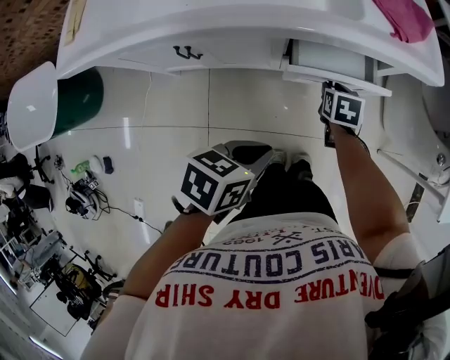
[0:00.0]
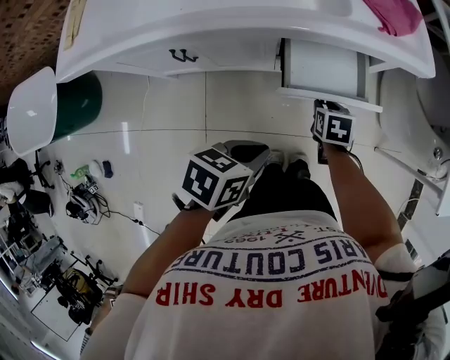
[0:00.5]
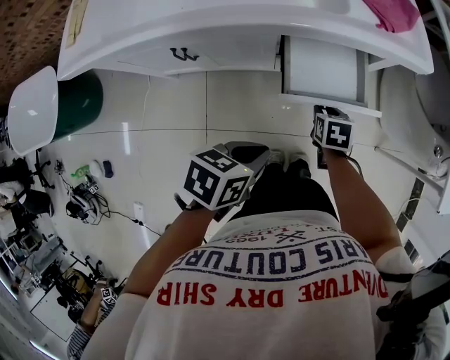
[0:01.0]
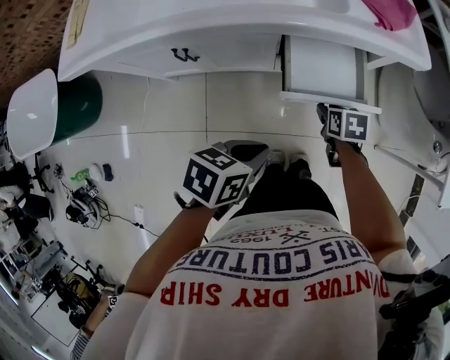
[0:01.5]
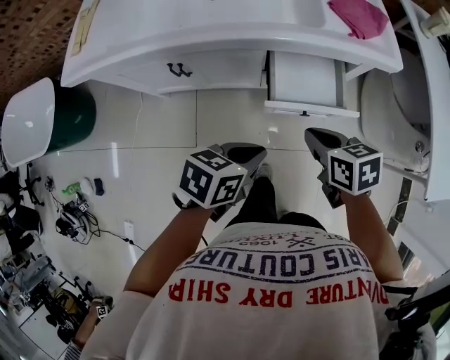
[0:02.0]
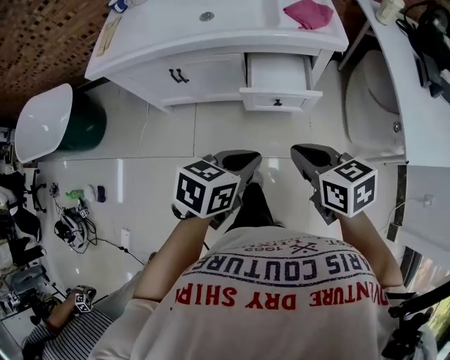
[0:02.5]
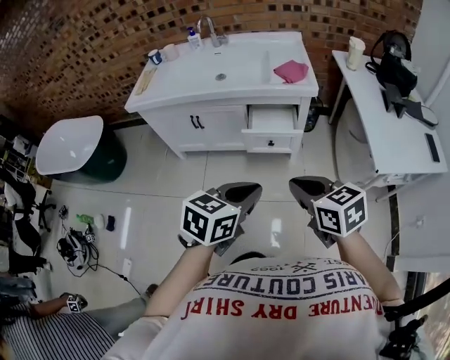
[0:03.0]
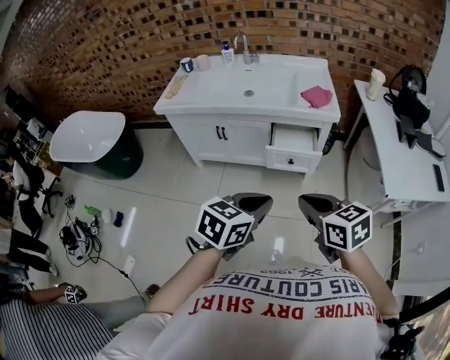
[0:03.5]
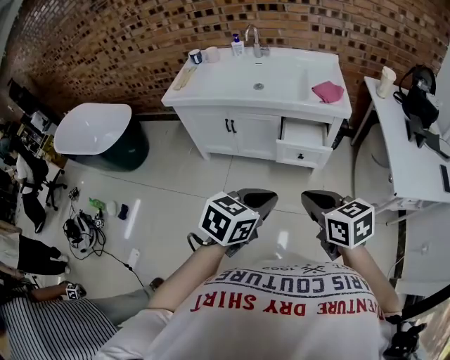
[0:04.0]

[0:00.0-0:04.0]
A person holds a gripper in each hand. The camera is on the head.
0:00.0 to 0:02.0: The right gripper travels upward and backward by roughly 25 cm, rotates some 30 degrees, and closes.
0:02.0 to 0:04.0: The grippers both shift backward and upward by about 40 cm. The right gripper rotates roughly 30 degrees. The left gripper changes its angle by approximately 30 degrees.

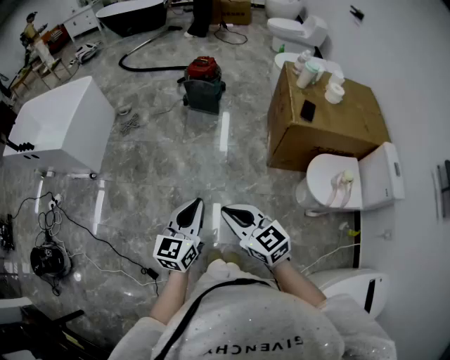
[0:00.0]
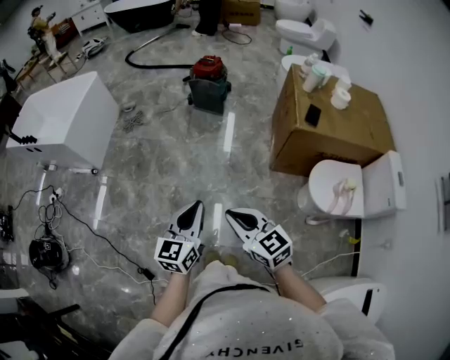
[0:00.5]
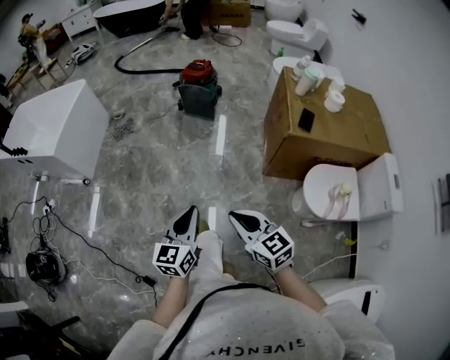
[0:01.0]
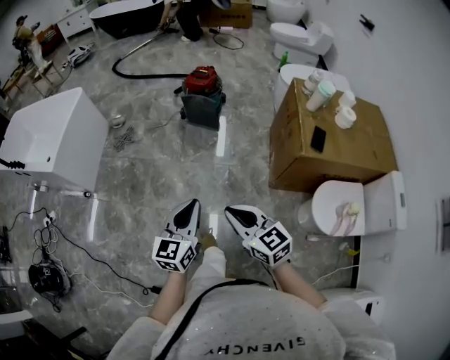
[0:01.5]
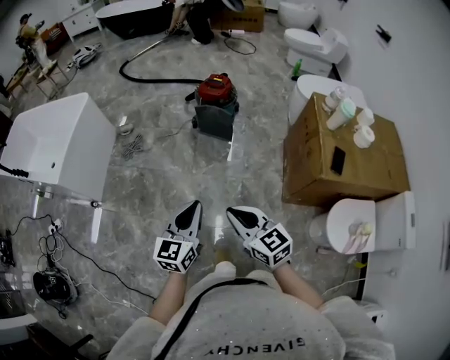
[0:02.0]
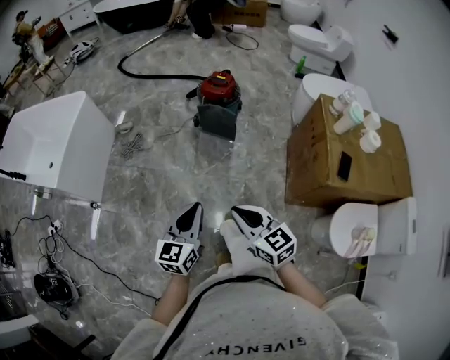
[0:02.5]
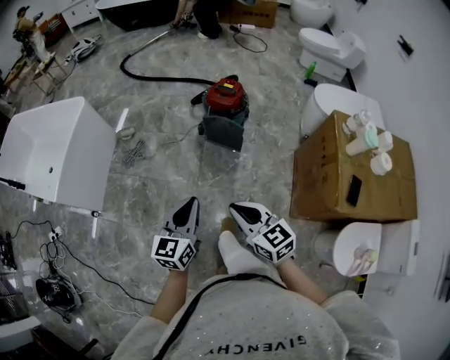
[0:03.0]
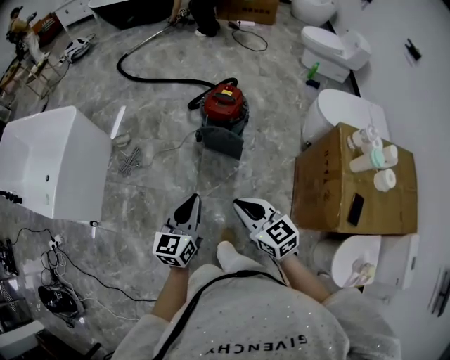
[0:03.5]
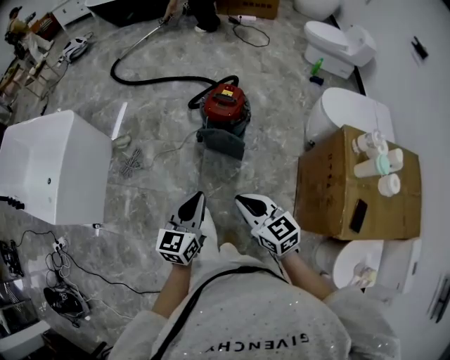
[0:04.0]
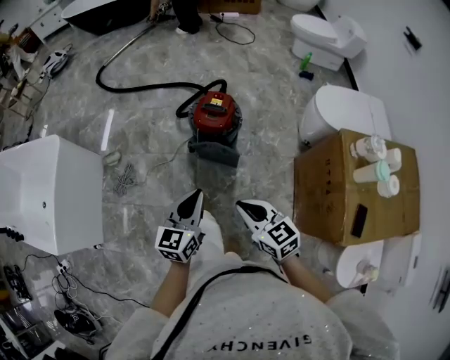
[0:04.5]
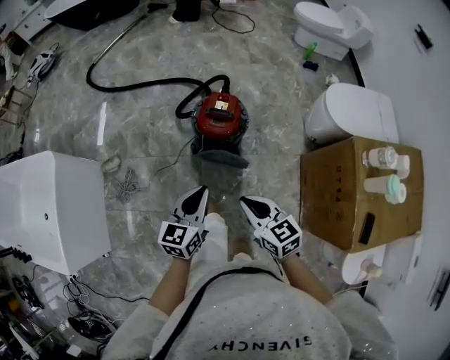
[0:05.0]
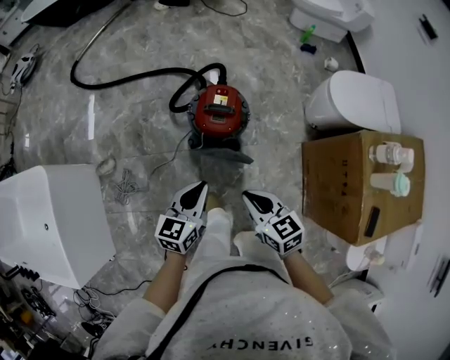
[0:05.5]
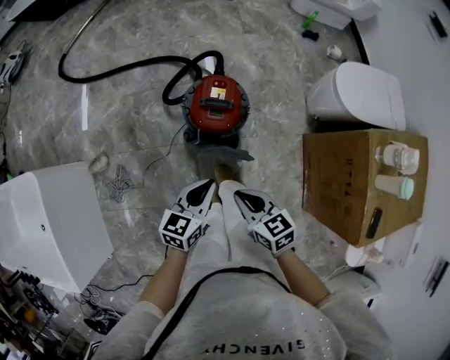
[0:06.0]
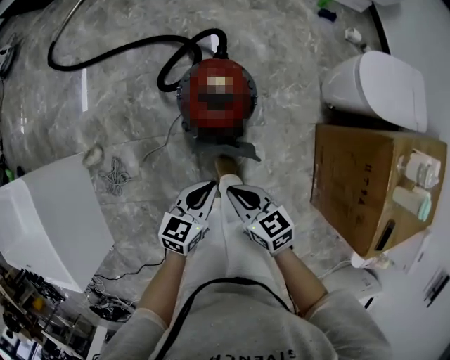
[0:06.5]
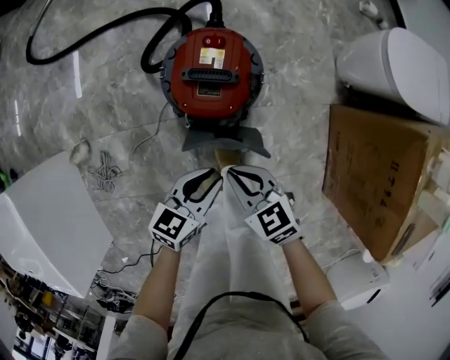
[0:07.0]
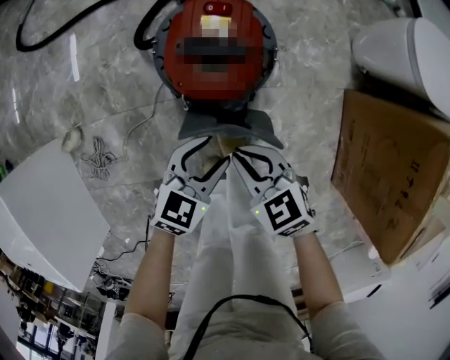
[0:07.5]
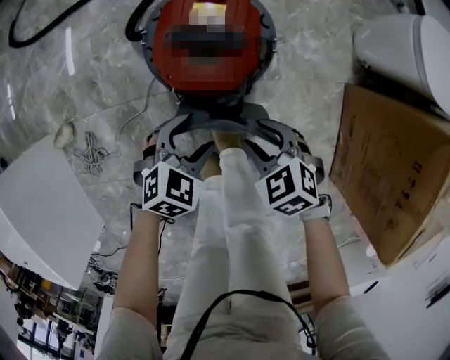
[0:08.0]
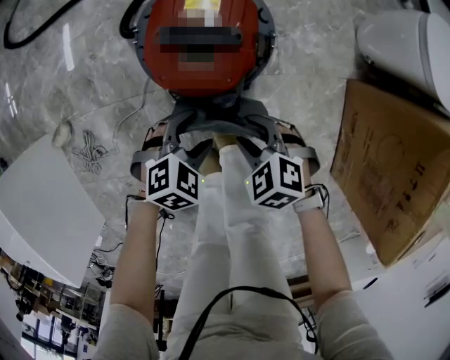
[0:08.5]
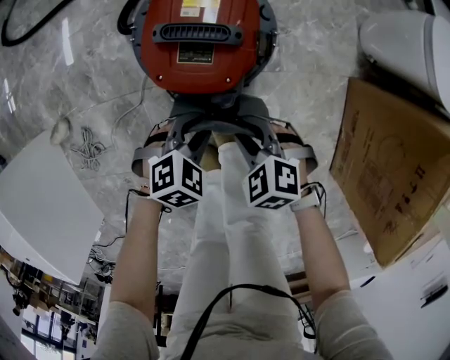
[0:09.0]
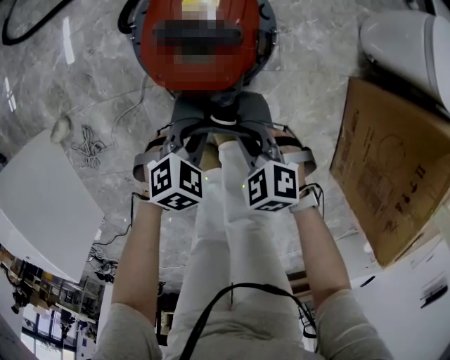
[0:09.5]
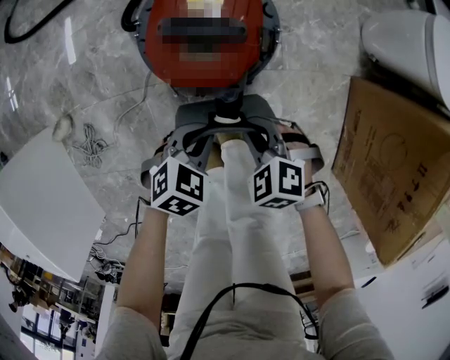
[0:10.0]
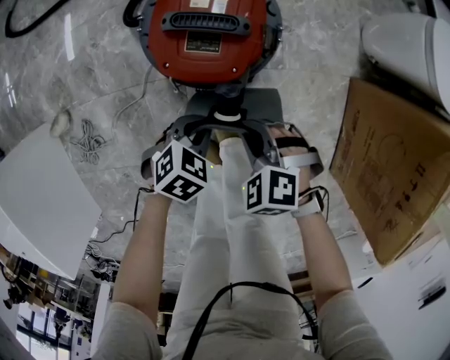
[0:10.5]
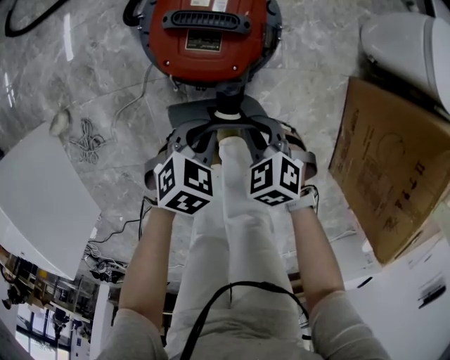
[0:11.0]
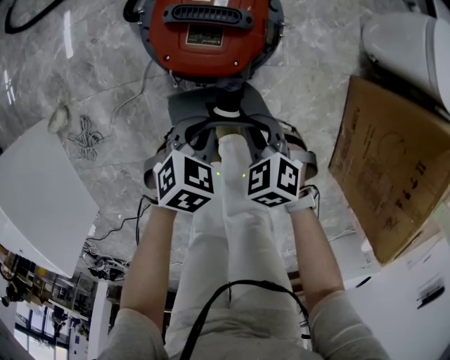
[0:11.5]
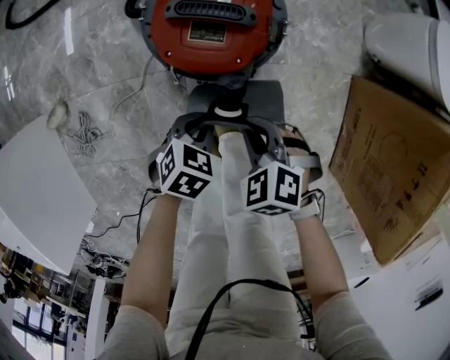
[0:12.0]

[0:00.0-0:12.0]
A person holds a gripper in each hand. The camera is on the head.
0:00.0 to 0:02.0: Both grippers move forward, approximately 30 cm.
0:02.0 to 0:04.0: The two grippers go about 30 cm forward.
0:04.0 to 0:06.0: The grippers both shift forward and downward by about 30 cm. The left gripper changes its angle by about 30 degrees; the right gripper rotates about 30 degrees.
0:06.0 to 0:08.0: Both grippers travel together downward, approximately 30 cm. The right gripper swivels about 40 degrees, and opens; the left gripper tilts its fingers roughly 30 degrees downward, and opens.
0:08.0 to 0:10.0: The right gripper closes up. Meanwhile the left gripper closes.
0:10.0 to 0:12.0: The grippers make only small movements.

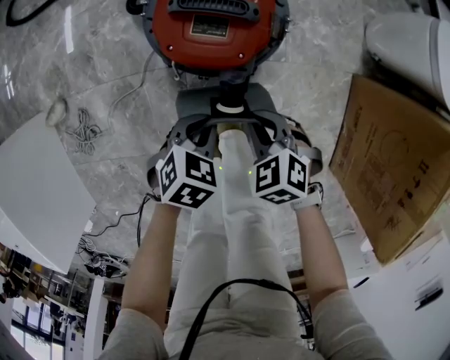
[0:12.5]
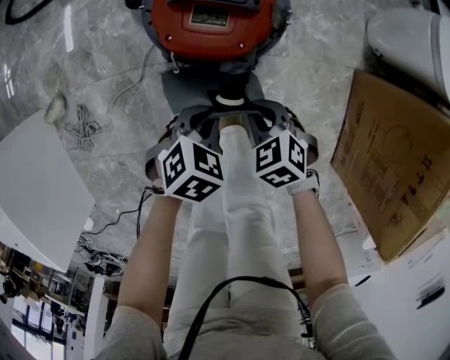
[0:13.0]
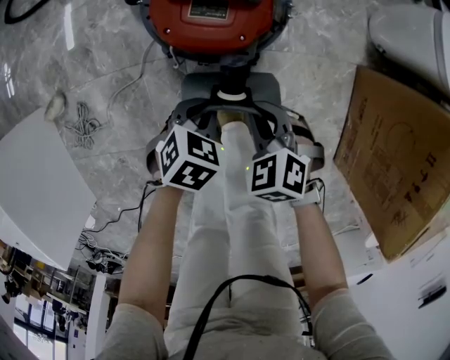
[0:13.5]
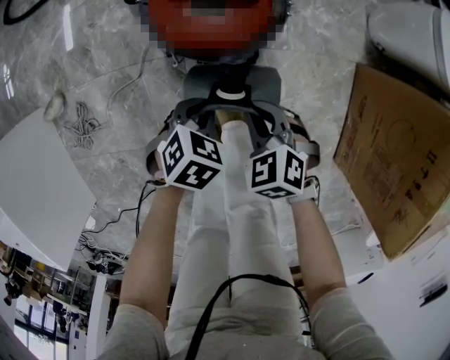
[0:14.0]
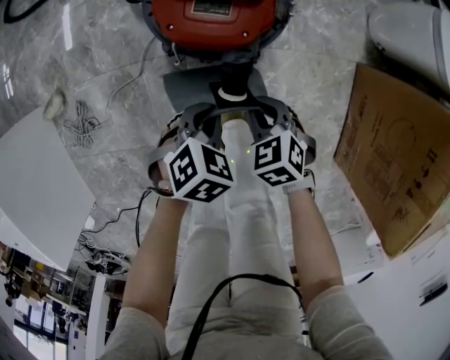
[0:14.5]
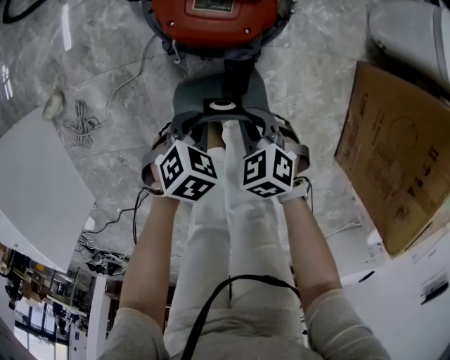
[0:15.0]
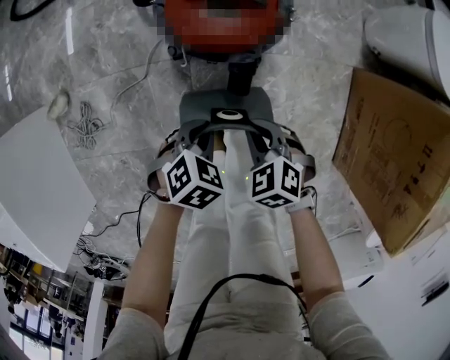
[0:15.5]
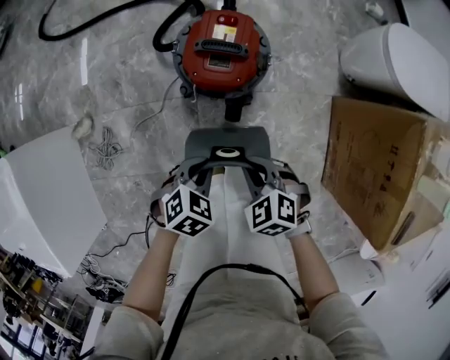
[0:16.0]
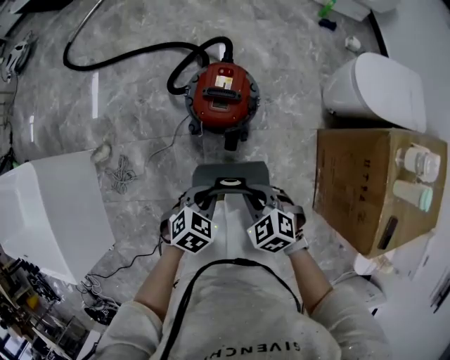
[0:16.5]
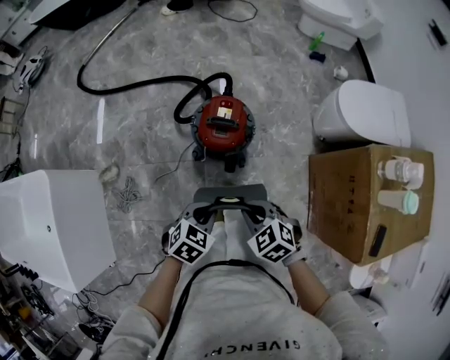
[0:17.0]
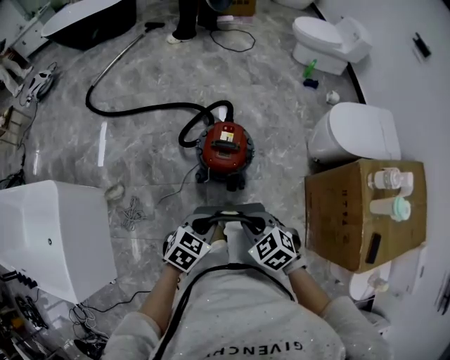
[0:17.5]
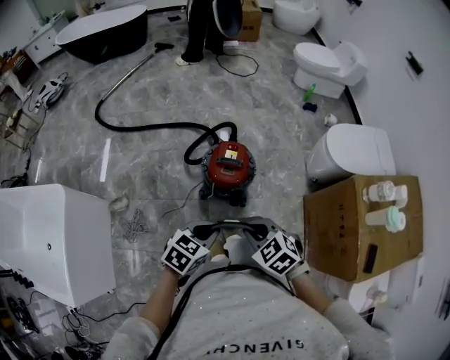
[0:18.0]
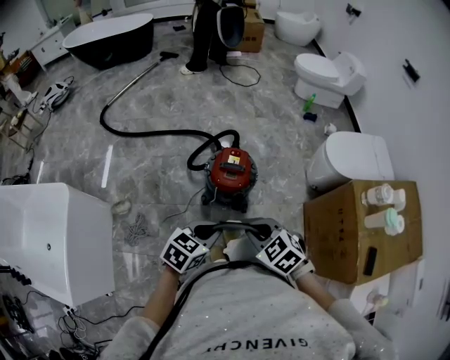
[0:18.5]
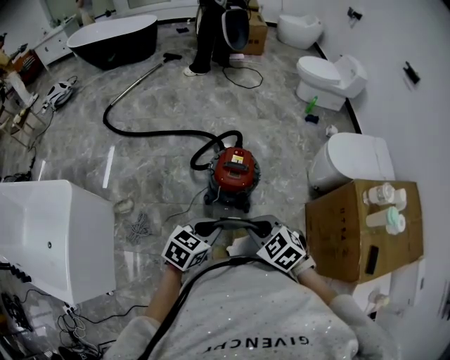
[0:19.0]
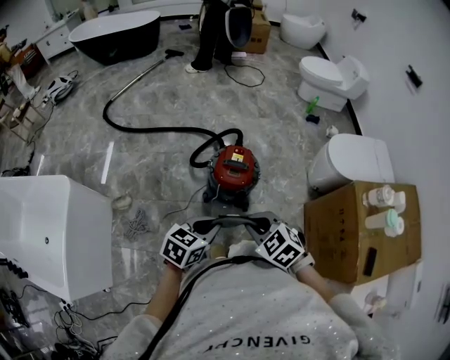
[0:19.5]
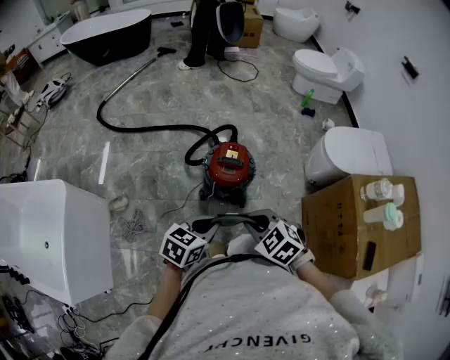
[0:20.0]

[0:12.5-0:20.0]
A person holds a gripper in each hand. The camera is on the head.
0:12.5 to 0:14.5: The grippers move only a little.
0:14.5 to 0:16.5: The grippers both shift upward by roughly 25 cm.
0:16.5 to 0:18.0: The grippers both shift upward by about 15 cm. The left gripper swivels about 20 degrees.
0:18.0 to 0:20.0: The grippers stay close to where they were, moving slightly.

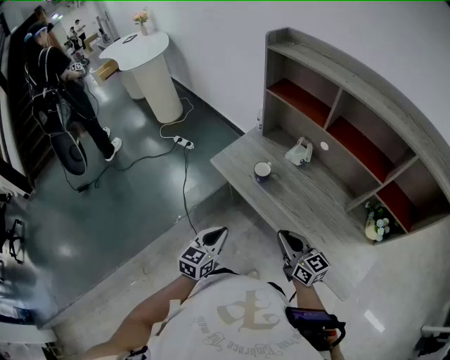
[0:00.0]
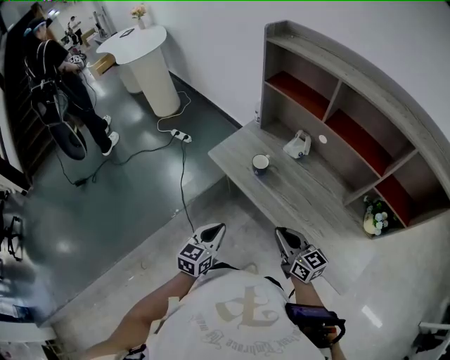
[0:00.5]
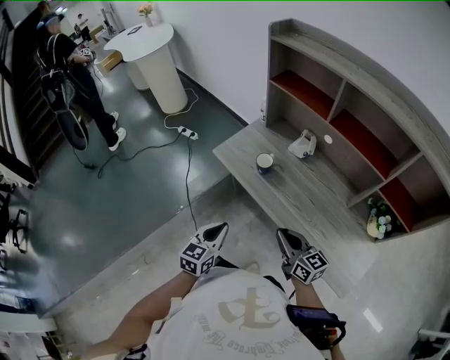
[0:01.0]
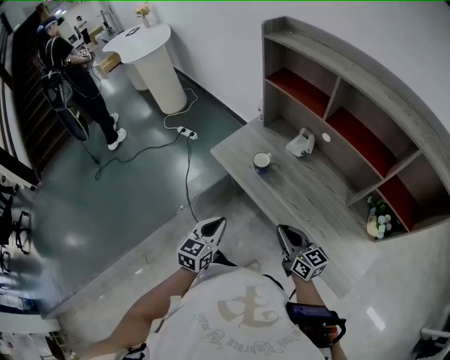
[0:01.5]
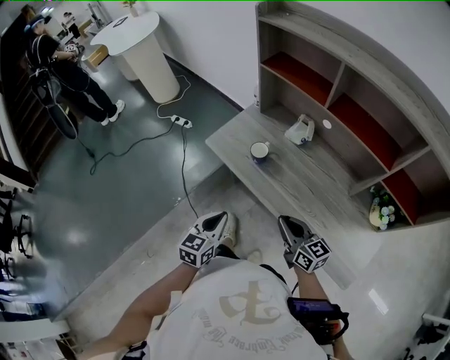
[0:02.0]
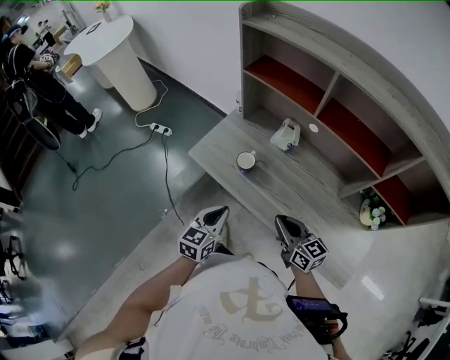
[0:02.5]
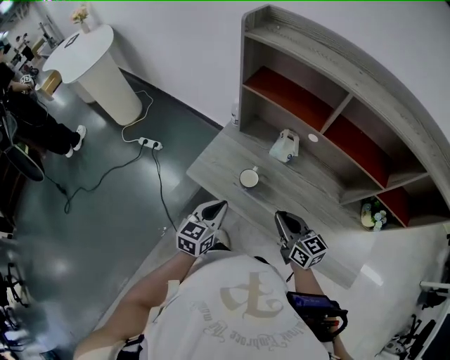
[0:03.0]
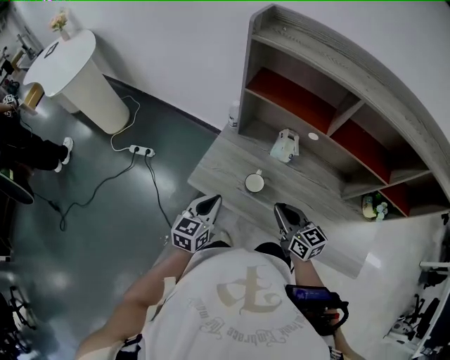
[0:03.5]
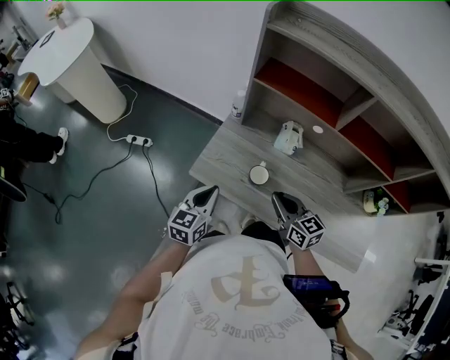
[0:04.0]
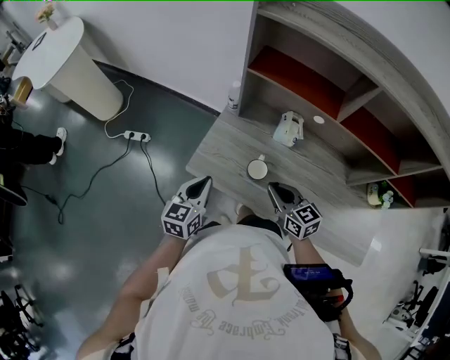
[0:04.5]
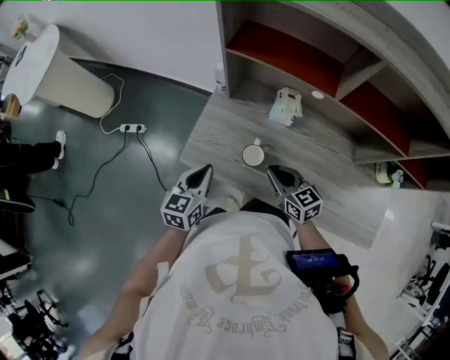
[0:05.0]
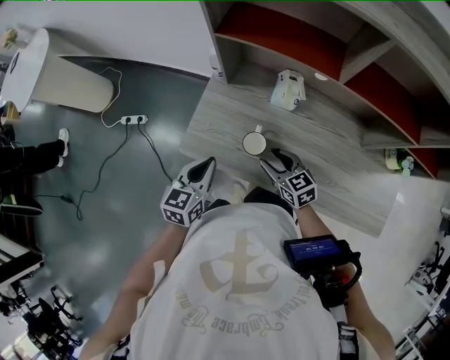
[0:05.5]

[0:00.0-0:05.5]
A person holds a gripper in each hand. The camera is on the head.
0:00.0 to 0:02.0: The grippers stay close to where they were, moving slightly.
0:02.0 to 0:03.5: The left gripper shifts roughly 25 cm forward. The right gripper shifts about 20 cm forward and to the left.
0:03.5 to 0:05.5: The left gripper shifts roughly 5 cm forward and downward, while the right gripper heads downward and forward, covering approximately 15 cm, and opens.
